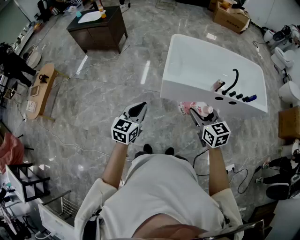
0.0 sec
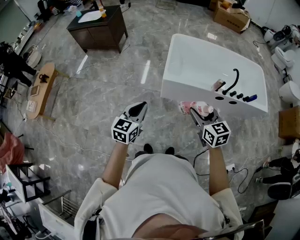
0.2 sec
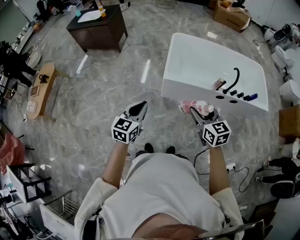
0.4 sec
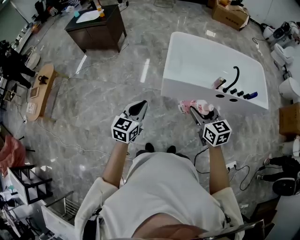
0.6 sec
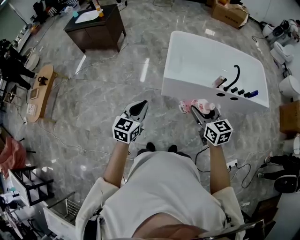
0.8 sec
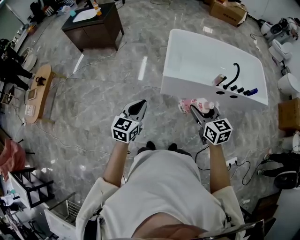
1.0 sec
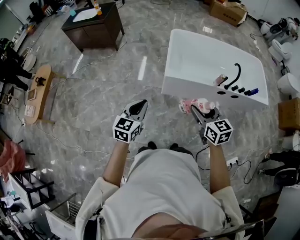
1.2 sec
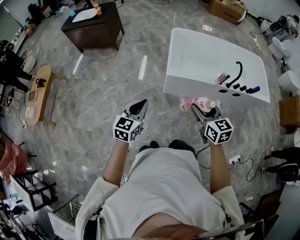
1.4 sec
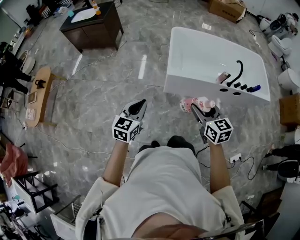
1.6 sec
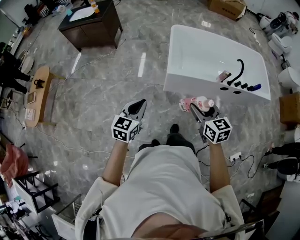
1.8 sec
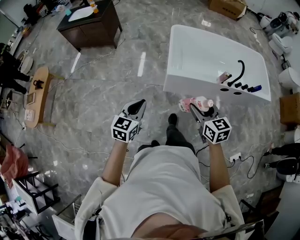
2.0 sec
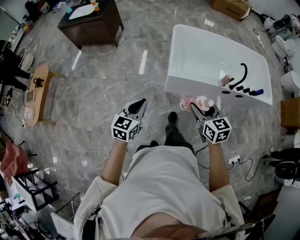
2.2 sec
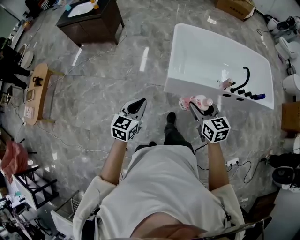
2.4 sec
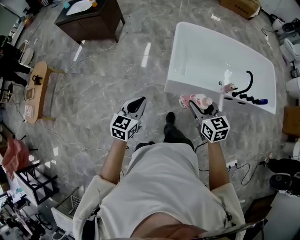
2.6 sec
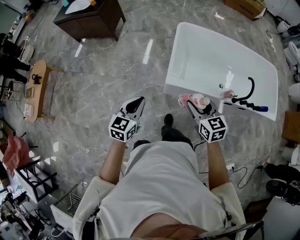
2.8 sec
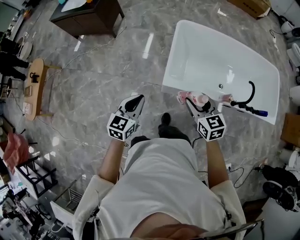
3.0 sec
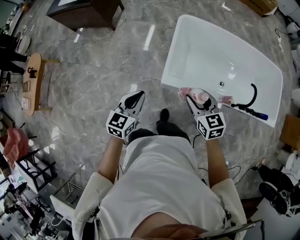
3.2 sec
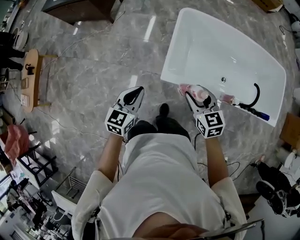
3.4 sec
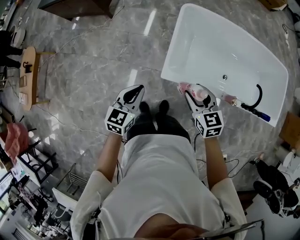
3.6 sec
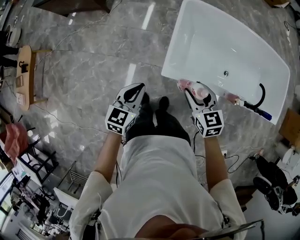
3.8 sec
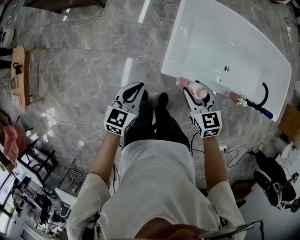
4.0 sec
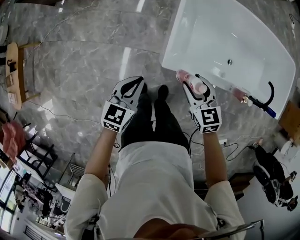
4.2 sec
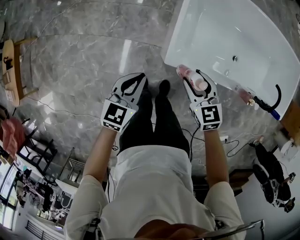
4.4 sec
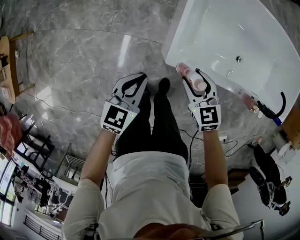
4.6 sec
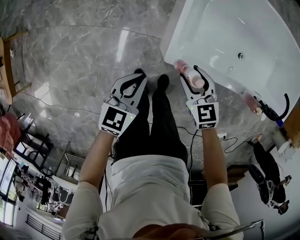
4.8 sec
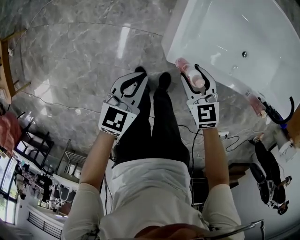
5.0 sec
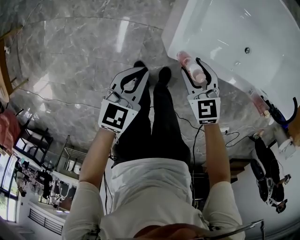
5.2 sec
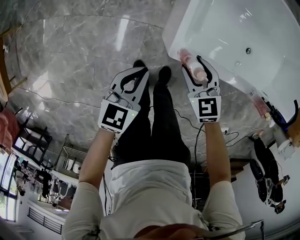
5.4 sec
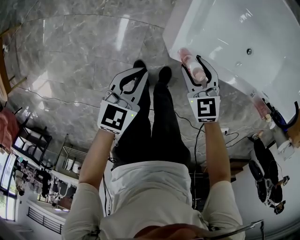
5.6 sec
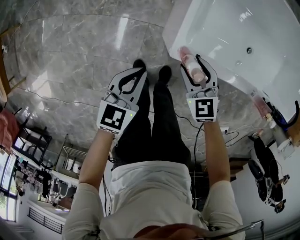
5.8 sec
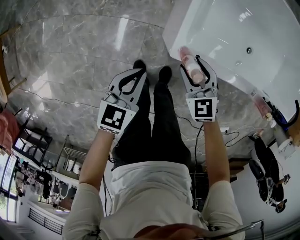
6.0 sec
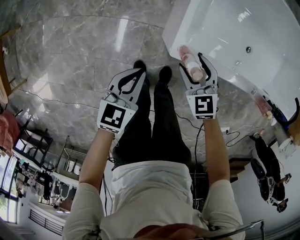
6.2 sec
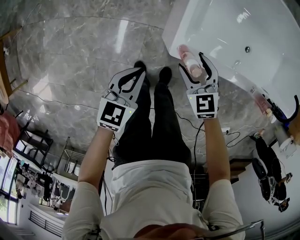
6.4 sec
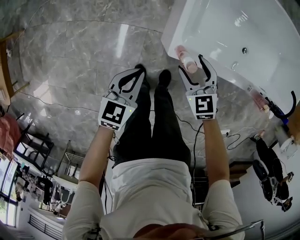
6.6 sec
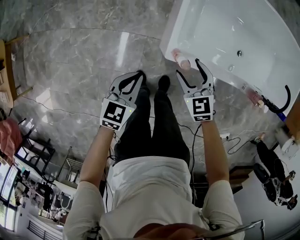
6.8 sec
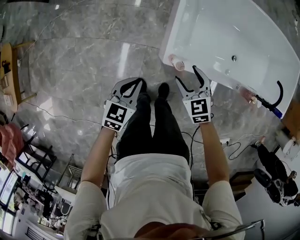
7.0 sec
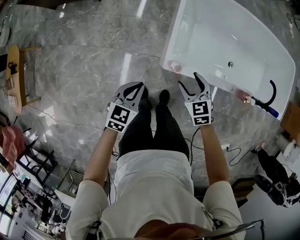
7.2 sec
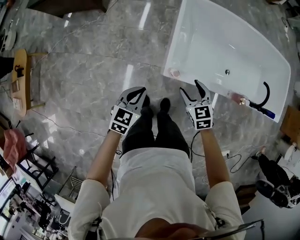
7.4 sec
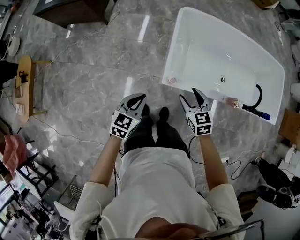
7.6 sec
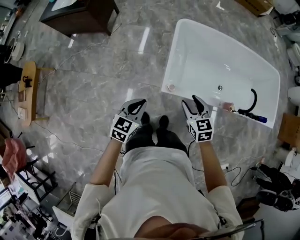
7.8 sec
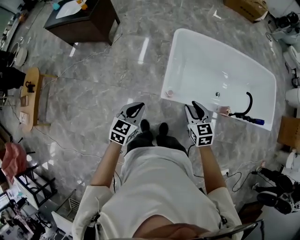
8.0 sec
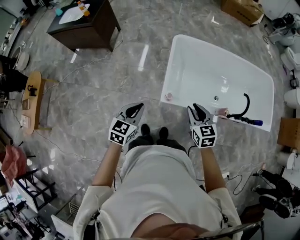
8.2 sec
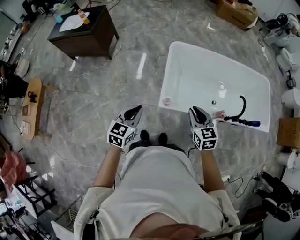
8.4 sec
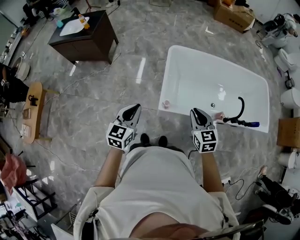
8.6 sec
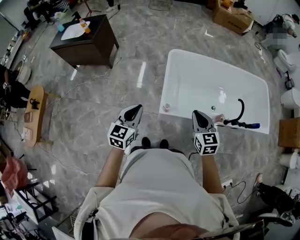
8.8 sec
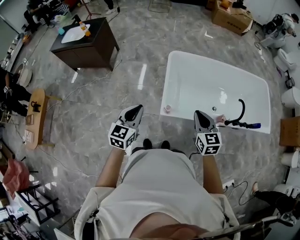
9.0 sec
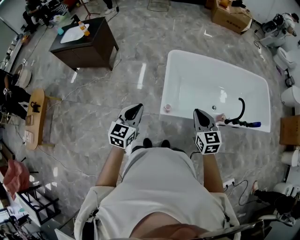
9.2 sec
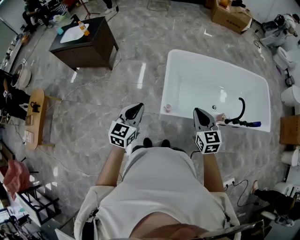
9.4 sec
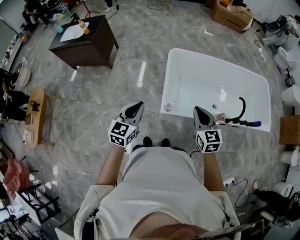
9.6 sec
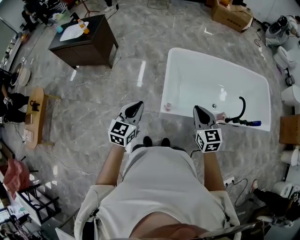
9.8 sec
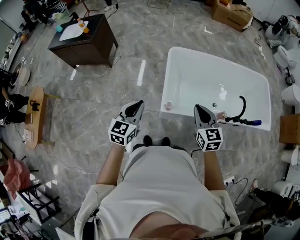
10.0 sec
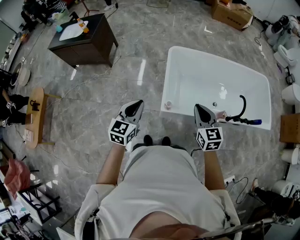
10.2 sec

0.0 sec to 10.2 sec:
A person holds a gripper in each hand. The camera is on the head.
0.0 sec to 1.4 sec: The grippers both shift to the left by roughly 5 cm.
1.4 sec to 3.0 sec: The two grippers go approximately 30 cm forward.
3.0 sec to 4.4 sec: Both grippers move downward and forward, roughly 25 cm.
4.4 sec to 5.8 sec: The two grippers go some 15 cm downward.
5.8 sec to 7.2 sec: The two grippers go approximately 15 cm upward.
7.2 sec to 8.8 sec: Both grippers travel together upward, some 30 cm. The right gripper swivels approximately 20 degrees, and closes. Meanwhile the left gripper swivels some 20 degrees.
8.8 sec to 10.2 sec: The grippers move only a little.

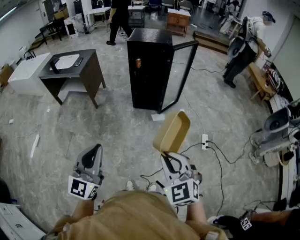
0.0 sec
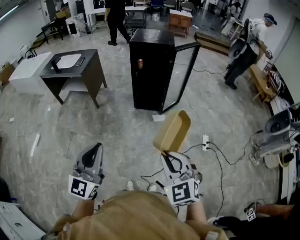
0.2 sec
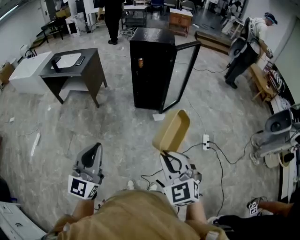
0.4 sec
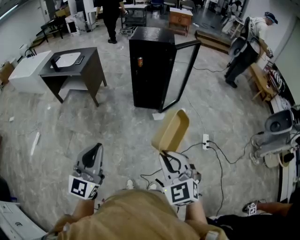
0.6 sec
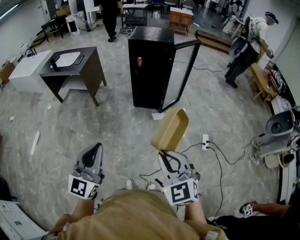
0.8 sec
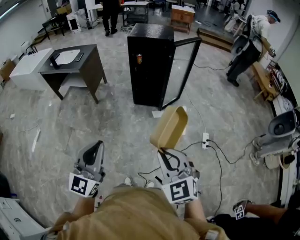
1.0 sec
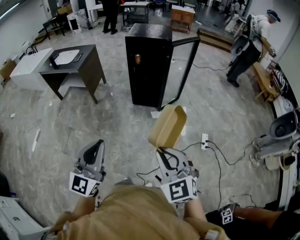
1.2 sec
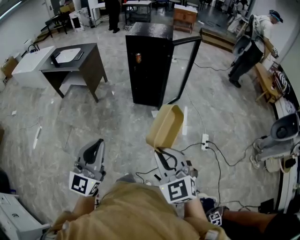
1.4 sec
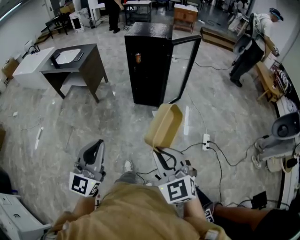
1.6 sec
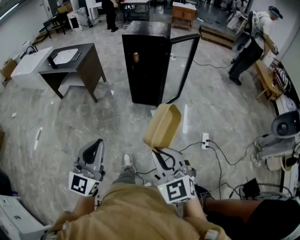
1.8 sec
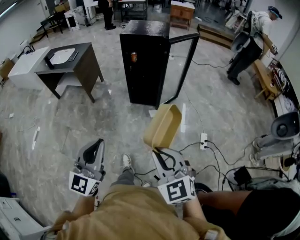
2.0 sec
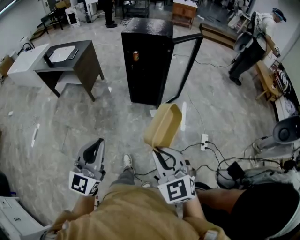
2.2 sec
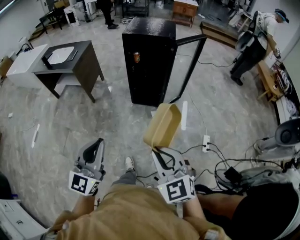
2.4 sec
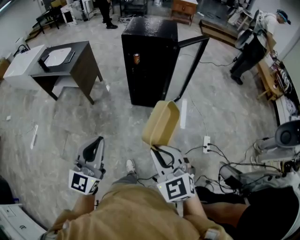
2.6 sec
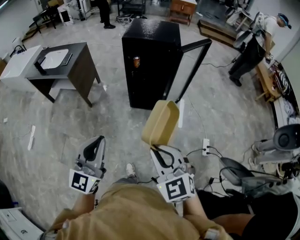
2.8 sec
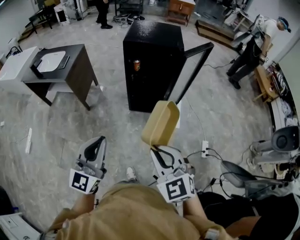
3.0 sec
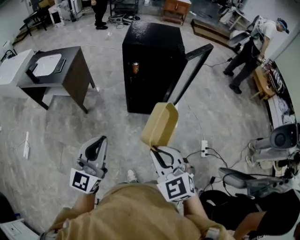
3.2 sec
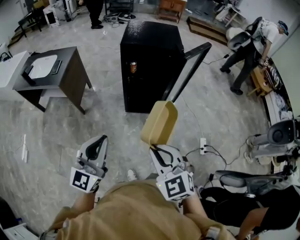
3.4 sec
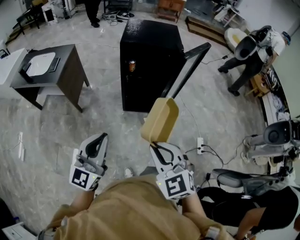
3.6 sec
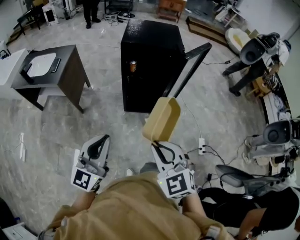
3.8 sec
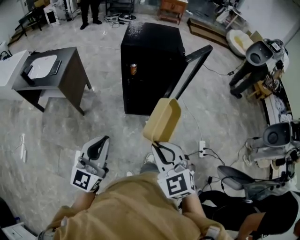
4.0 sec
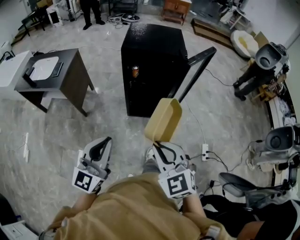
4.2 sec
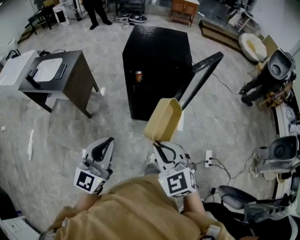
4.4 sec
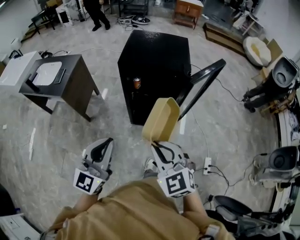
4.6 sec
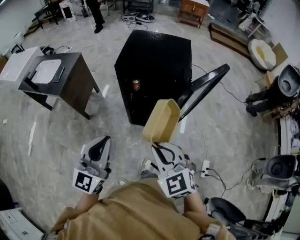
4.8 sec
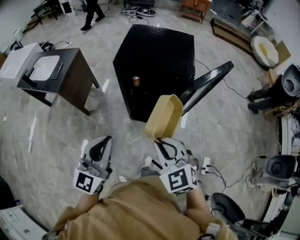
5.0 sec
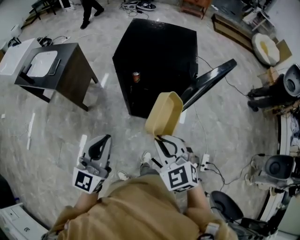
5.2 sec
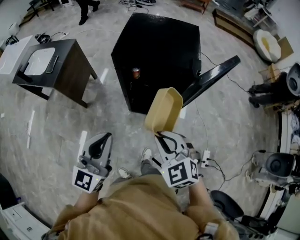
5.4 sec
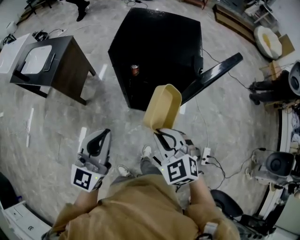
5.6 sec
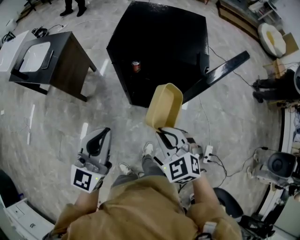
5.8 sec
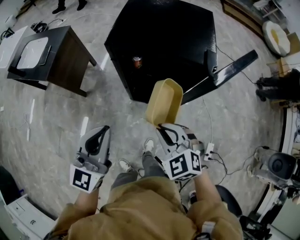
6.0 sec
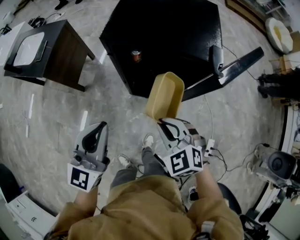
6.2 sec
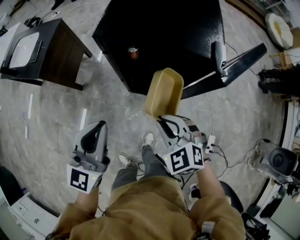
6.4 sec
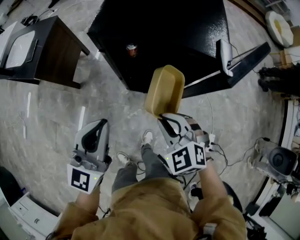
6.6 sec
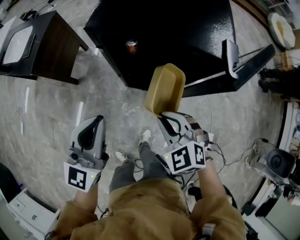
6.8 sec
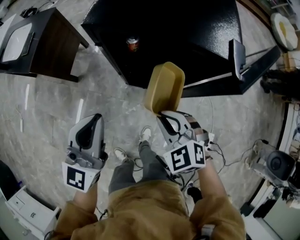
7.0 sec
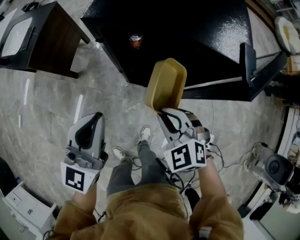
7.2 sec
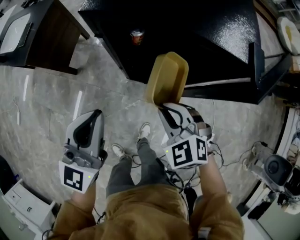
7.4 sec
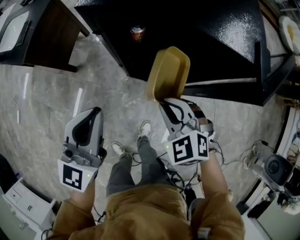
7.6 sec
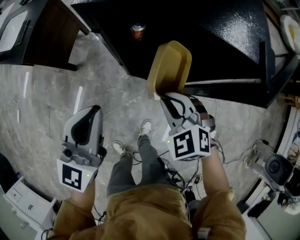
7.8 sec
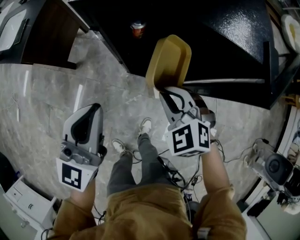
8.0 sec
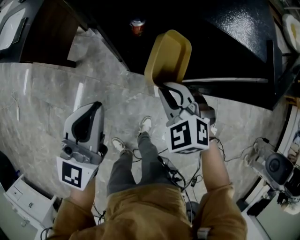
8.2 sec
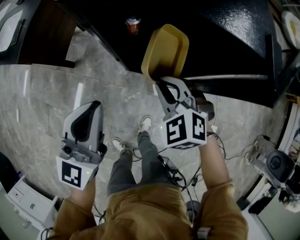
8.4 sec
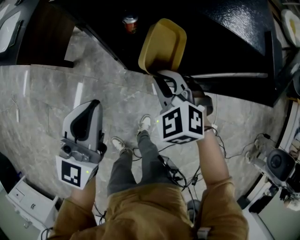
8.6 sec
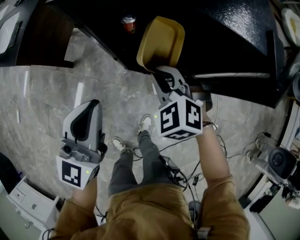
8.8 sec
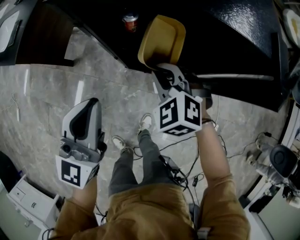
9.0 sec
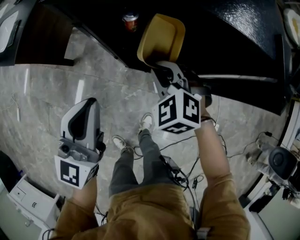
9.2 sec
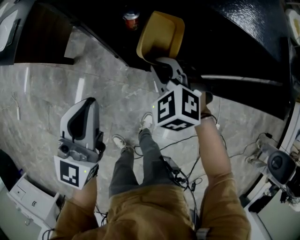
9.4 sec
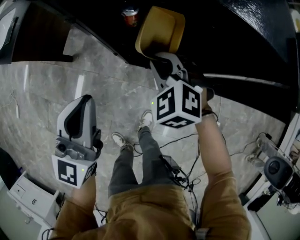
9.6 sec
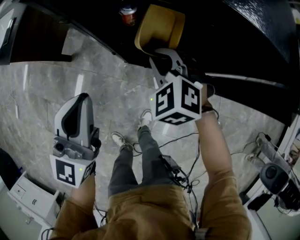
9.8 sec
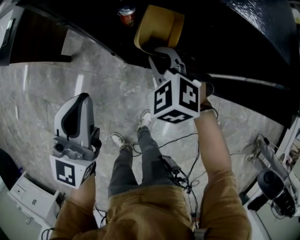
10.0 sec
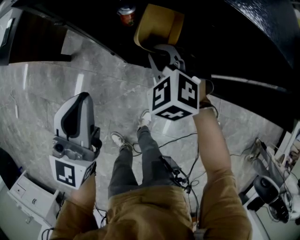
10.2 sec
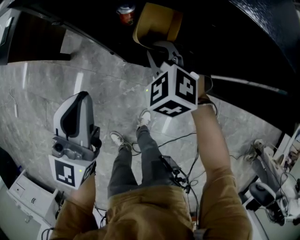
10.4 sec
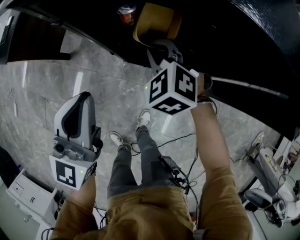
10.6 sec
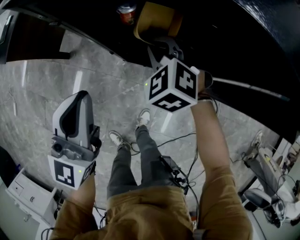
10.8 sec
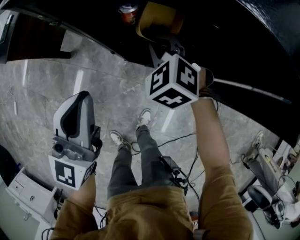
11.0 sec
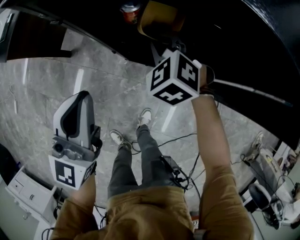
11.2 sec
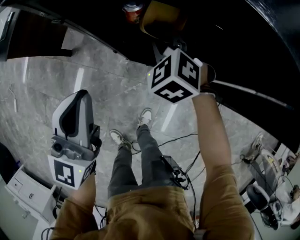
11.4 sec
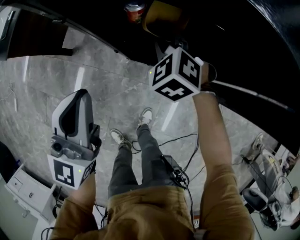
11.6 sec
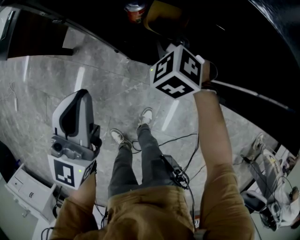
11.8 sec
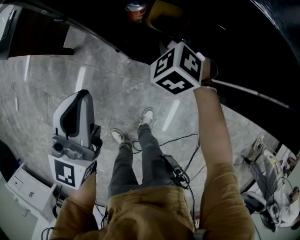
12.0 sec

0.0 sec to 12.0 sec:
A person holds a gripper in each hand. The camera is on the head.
0.0 sec to 1.6 sec: The right gripper moves approximately 5 cm. Meanwhile the left gripper moves to the right, about 10 cm.
1.6 sec to 3.0 sec: The two grippers go some 30 cm forward.
3.0 sec to 4.4 sec: Both grippers travel together forward, roughly 15 cm.
4.4 sec to 6.0 sec: The left gripper shifts some 20 cm forward, while the right gripper is displaced forward and downward by about 25 cm.
6.0 sec to 7.6 sec: Both grippers travel together downward and forward, about 15 cm.
7.6 sec to 9.0 sec: The right gripper heads forward, covering approximately 10 cm.
9.0 sec to 10.4 sec: The right gripper travels forward by about 5 cm.
10.4 sec to 12.0 sec: The right gripper goes approximately 5 cm forward.

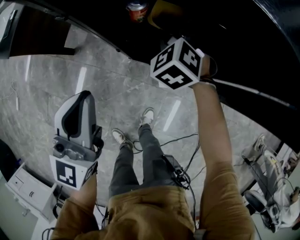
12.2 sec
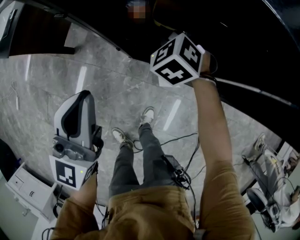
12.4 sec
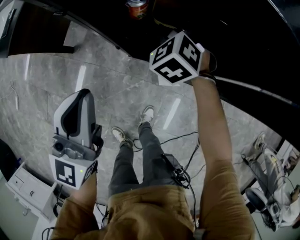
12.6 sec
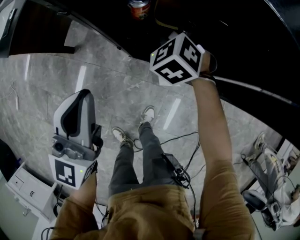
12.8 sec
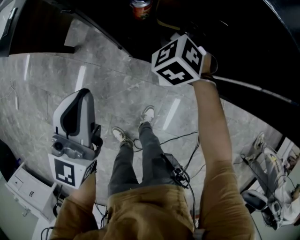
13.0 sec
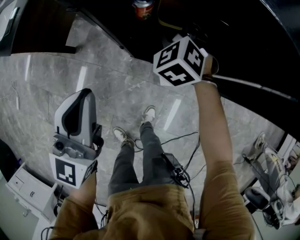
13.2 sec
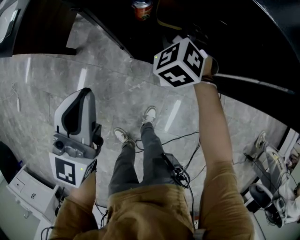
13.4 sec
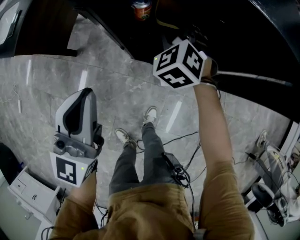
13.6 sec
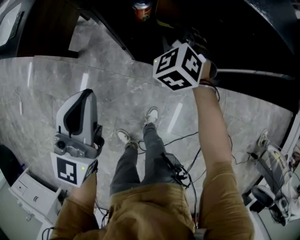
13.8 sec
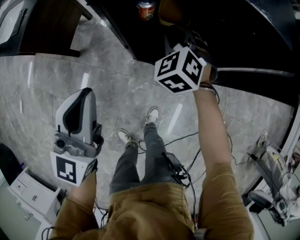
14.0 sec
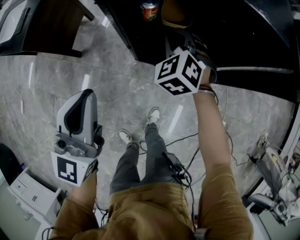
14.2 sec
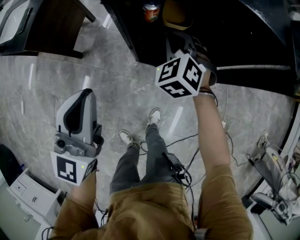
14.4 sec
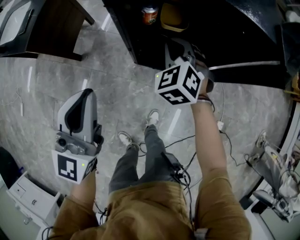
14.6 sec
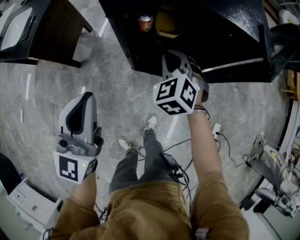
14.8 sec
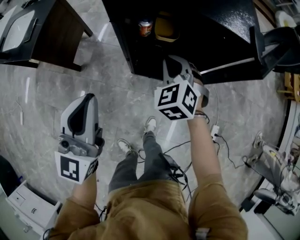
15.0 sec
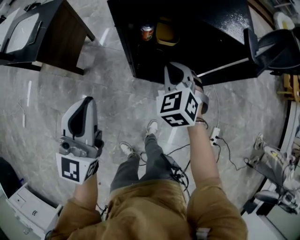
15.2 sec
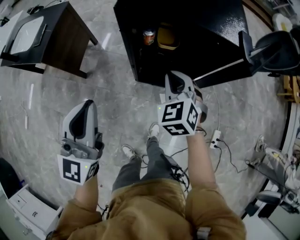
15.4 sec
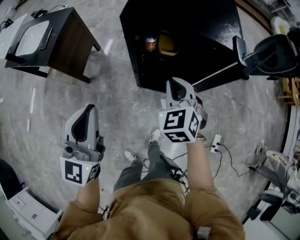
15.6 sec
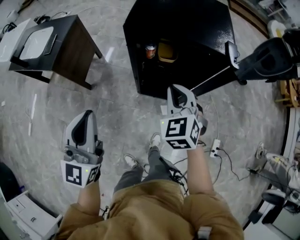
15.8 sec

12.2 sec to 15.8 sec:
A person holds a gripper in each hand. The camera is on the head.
12.2 sec to 14.0 sec: The left gripper ends up some 5 cm from where it was. Meanwhile the right gripper moves upward, roughly 5 cm.
14.0 sec to 15.8 sec: The left gripper shifts approximately 20 cm upward, backward and to the left. The right gripper shifts about 30 cm upward and backward.
